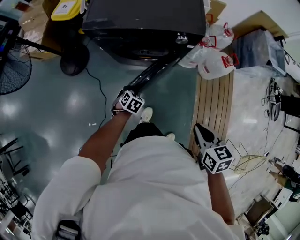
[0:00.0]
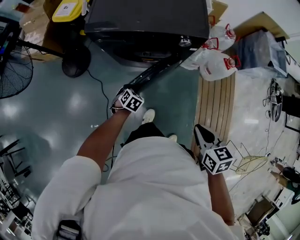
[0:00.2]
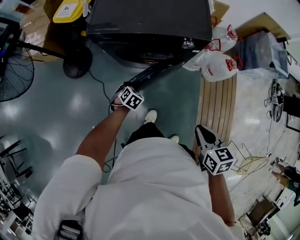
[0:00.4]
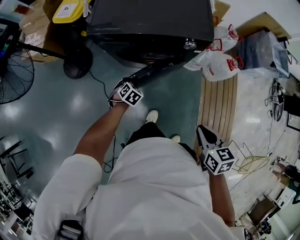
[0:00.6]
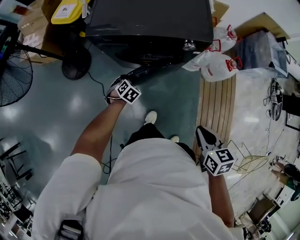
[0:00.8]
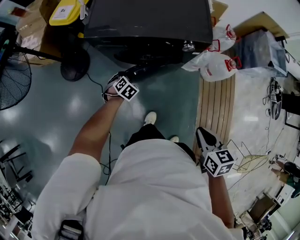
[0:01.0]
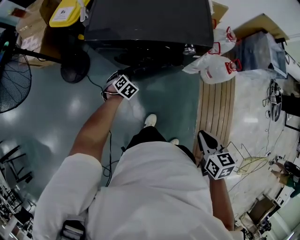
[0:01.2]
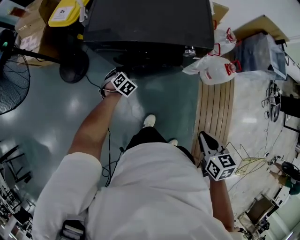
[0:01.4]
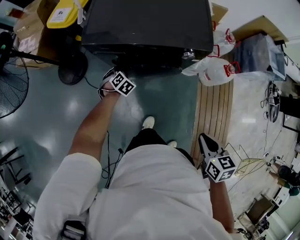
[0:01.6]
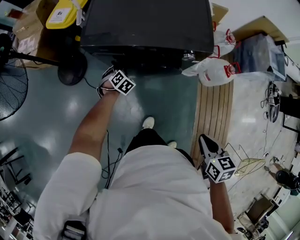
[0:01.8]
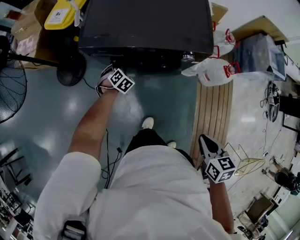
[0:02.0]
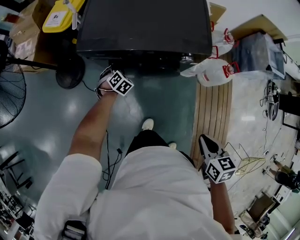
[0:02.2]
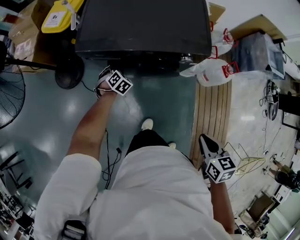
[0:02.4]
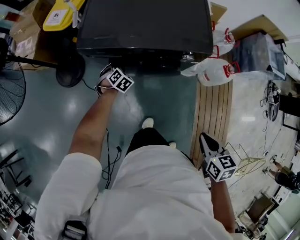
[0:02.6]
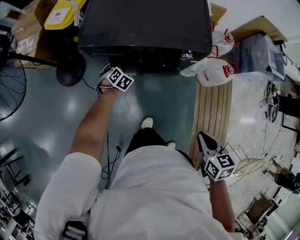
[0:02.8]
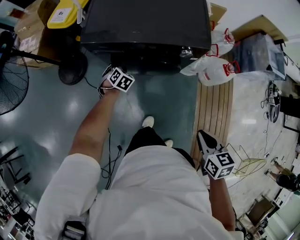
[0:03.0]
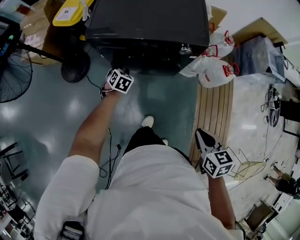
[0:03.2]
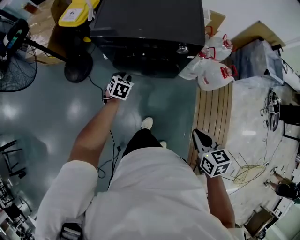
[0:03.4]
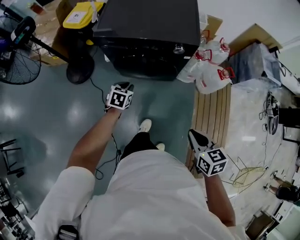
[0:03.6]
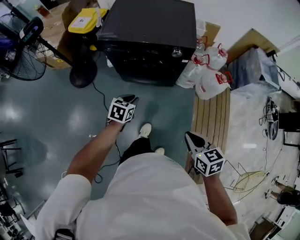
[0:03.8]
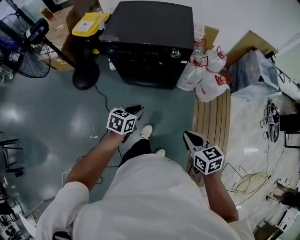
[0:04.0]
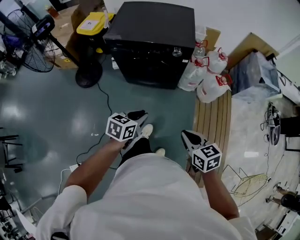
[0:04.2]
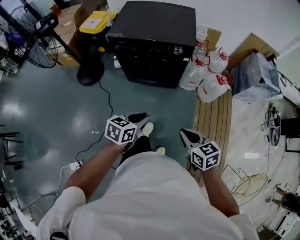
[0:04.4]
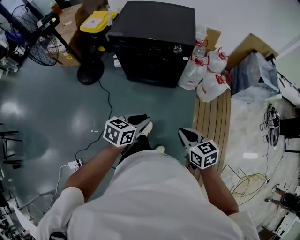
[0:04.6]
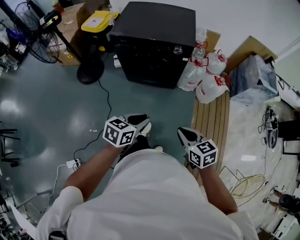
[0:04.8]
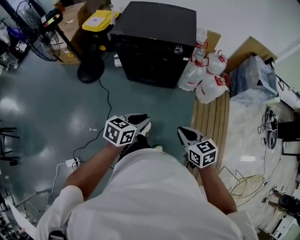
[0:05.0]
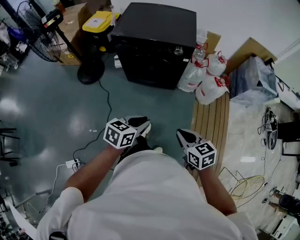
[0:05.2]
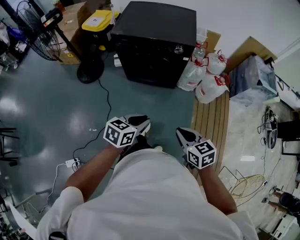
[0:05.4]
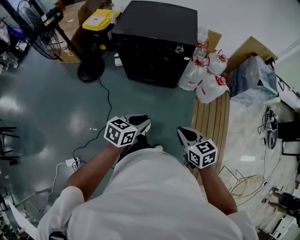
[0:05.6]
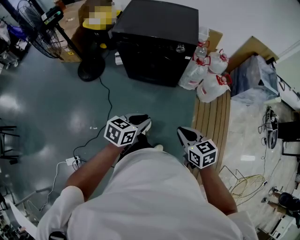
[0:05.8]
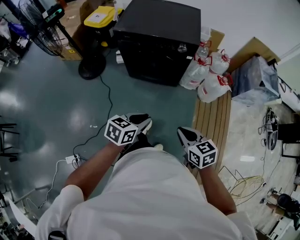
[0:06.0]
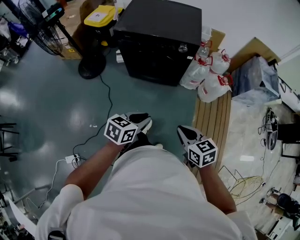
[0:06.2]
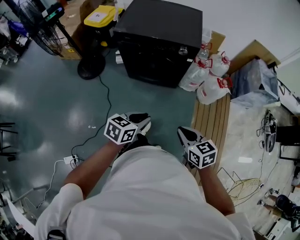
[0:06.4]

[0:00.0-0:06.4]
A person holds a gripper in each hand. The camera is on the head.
0:00.0 to 0:01.6: The left gripper heads forward, covering some 20 cm.
0:01.6 to 0:03.2: The left gripper changes place by some 5 cm.
0:03.2 to 0:04.8: The left gripper shifts about 50 cm backward and upward, and rotates roughly 40 degrees. Meanwhile the right gripper shifts approximately 15 cm backward.
0:04.8 to 0:06.4: The grippers make only small movements.

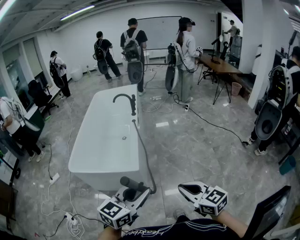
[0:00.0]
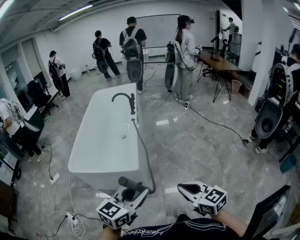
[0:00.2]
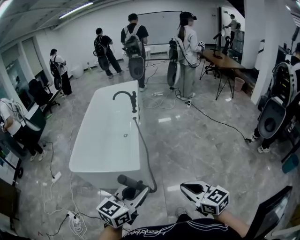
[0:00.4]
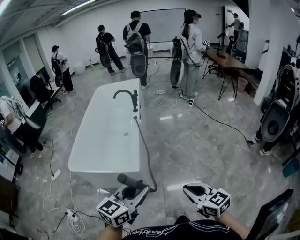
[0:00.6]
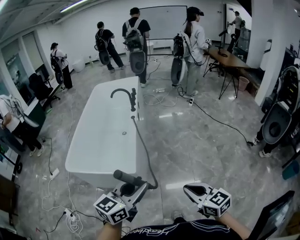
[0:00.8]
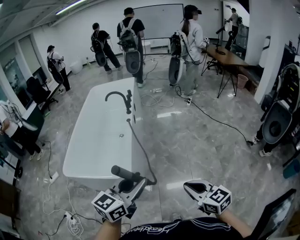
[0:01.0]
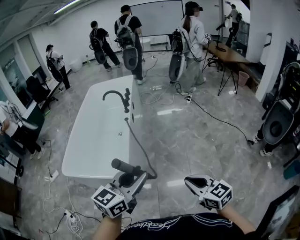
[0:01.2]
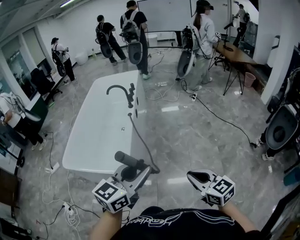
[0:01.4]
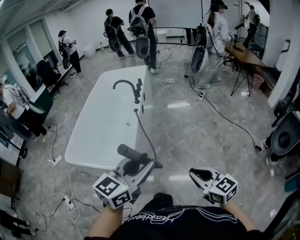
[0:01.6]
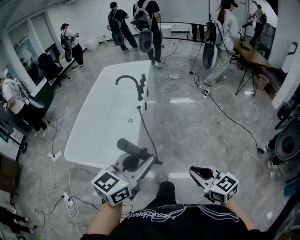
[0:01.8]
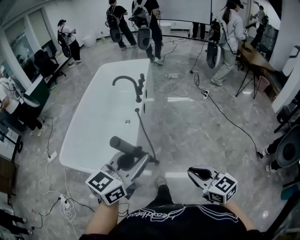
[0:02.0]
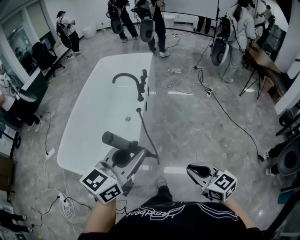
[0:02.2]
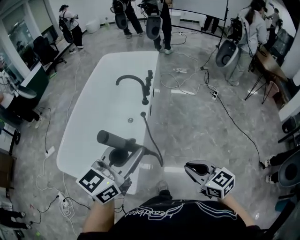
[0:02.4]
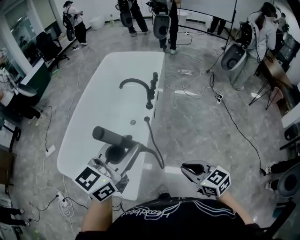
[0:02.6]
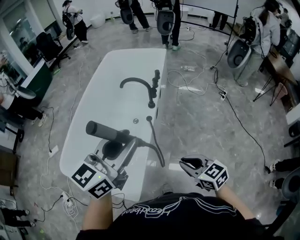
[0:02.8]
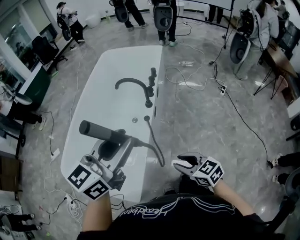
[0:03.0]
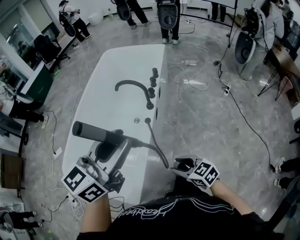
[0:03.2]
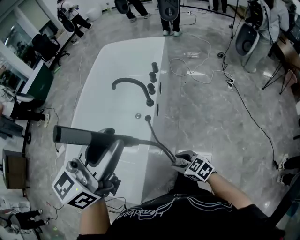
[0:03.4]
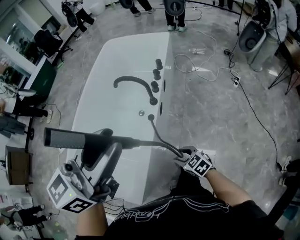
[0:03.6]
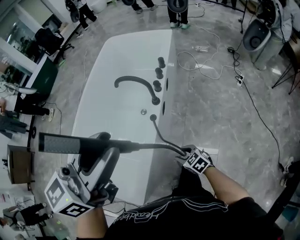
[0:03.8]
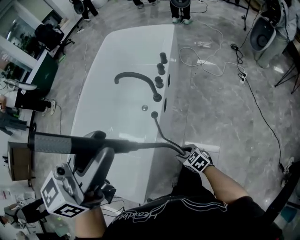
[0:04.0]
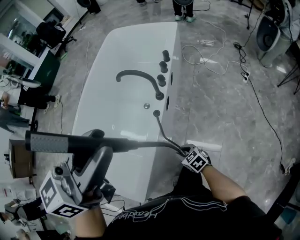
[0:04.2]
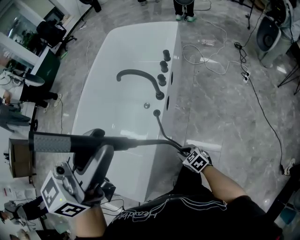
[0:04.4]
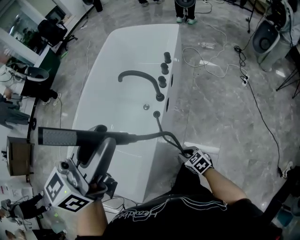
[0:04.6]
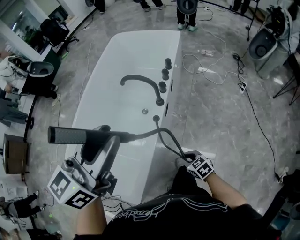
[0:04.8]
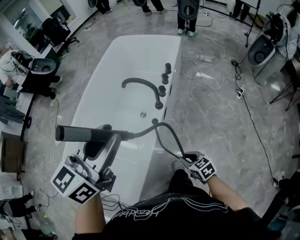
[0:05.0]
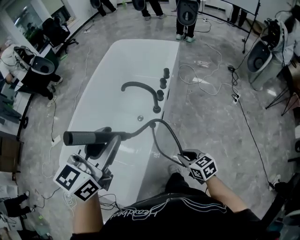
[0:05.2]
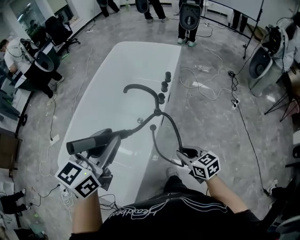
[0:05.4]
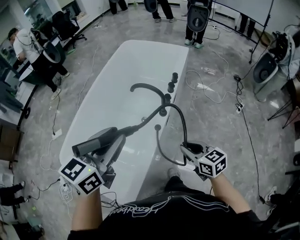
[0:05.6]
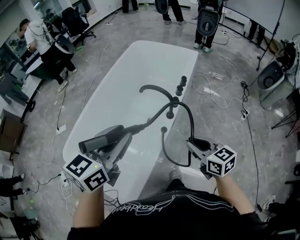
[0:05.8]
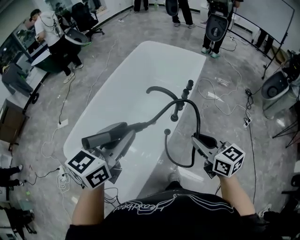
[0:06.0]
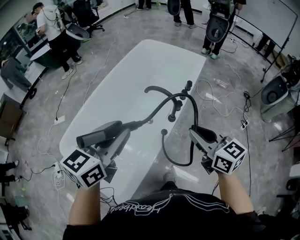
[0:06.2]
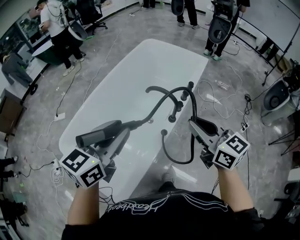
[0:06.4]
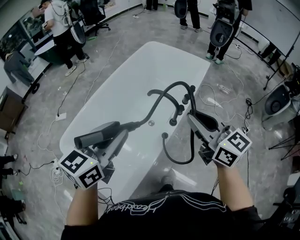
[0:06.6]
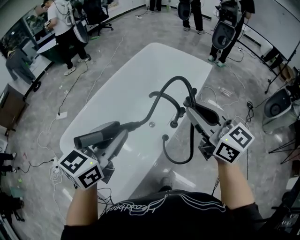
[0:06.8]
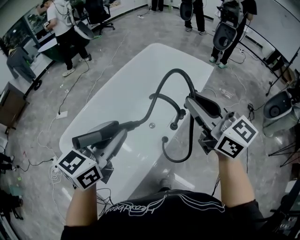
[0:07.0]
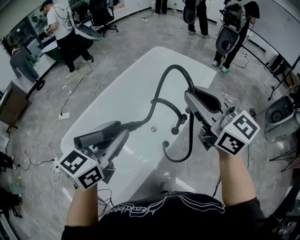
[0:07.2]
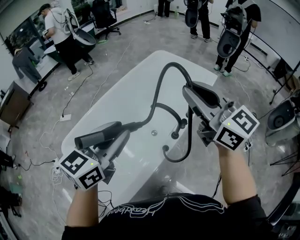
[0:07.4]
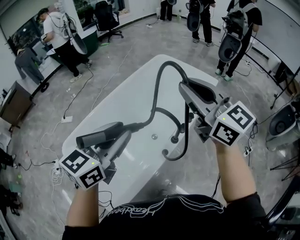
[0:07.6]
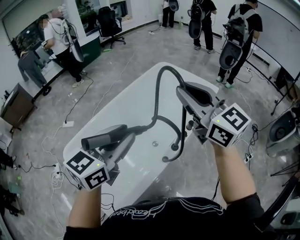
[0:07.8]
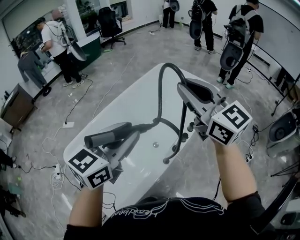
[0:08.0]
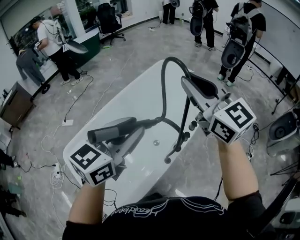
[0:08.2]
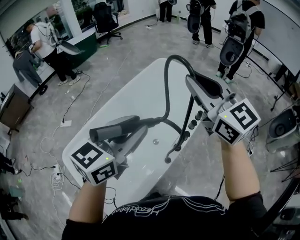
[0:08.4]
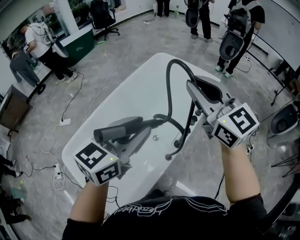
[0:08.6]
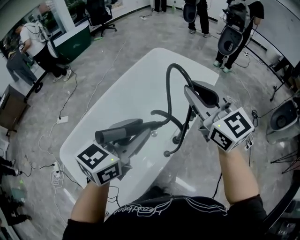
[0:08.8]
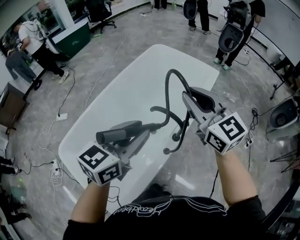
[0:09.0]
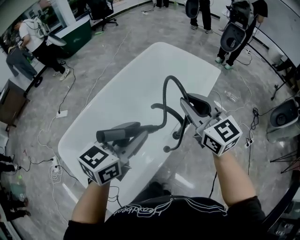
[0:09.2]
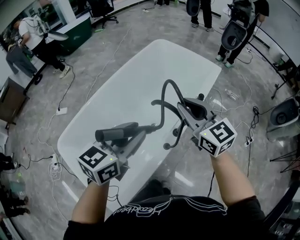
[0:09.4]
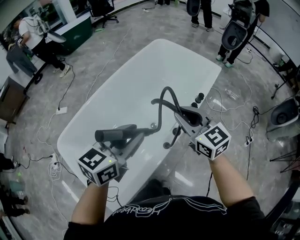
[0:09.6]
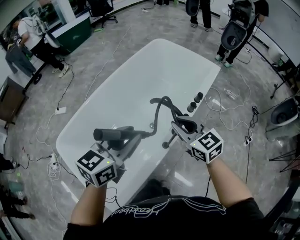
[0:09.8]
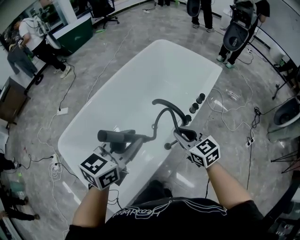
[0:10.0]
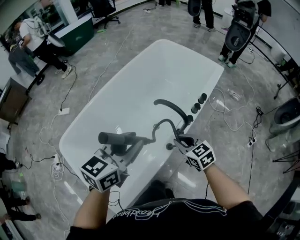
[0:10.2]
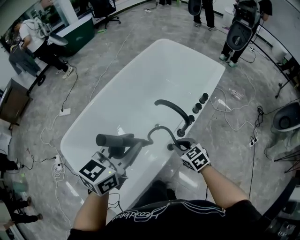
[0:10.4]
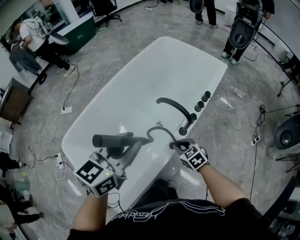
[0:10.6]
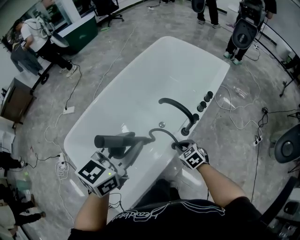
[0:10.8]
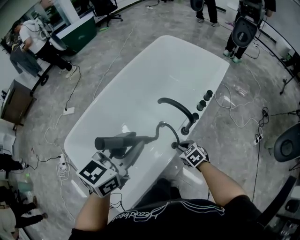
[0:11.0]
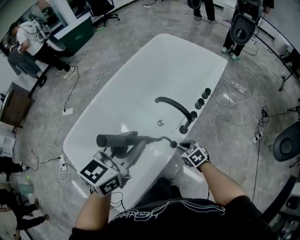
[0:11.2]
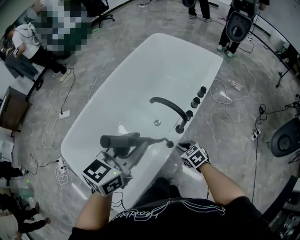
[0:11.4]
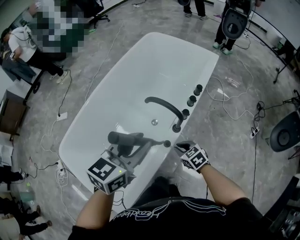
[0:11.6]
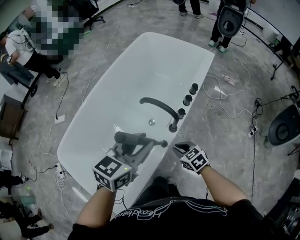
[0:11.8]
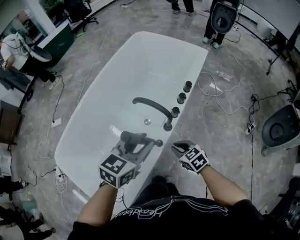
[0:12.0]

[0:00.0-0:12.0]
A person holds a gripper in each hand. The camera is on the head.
0:00.0 to 0:01.6: Both grippers travel together forward and to the right, roughly 25 cm.
0:01.6 to 0:03.0: The two grippers go roughly 40 cm forward. The right gripper rotates about 20 degrees, and opens.
0:03.0 to 0:04.4: The right gripper shifts some 25 cm downward and forward, and changes its angle by about 20 degrees. The left gripper moves forward, some 10 cm.
0:04.4 to 0:06.0: The left gripper travels to the left, downward and forward by about 10 cm, while the right gripper travels upward by roughly 35 cm, and angles its fingers upward, by roughly 30 degrees.
0:06.0 to 0:07.6: The left gripper heads forward, covering approximately 5 cm; the right gripper travels upward and forward by roughly 30 cm, and swivels roughly 30 degrees.
0:07.6 to 0:09.0: The left gripper goes some 10 cm forward and downward, while the right gripper heads downward and forward, covering roughly 10 cm.
0:09.0 to 0:10.4: The right gripper moves downward, about 35 cm, and tilts its fingers roughly 40 degrees downward. The left gripper travels downward and to the left by about 10 cm.
0:10.4 to 0:12.0: The left gripper heads to the right and downward, covering about 15 cm. Meanwhile the right gripper shifts approximately 5 cm to the right.

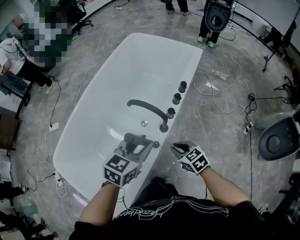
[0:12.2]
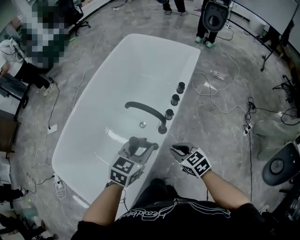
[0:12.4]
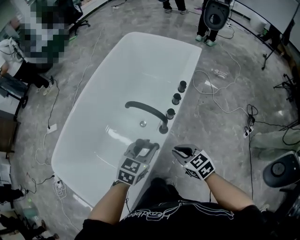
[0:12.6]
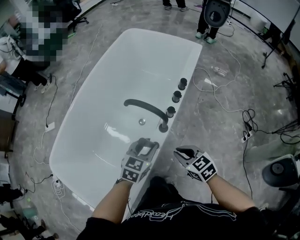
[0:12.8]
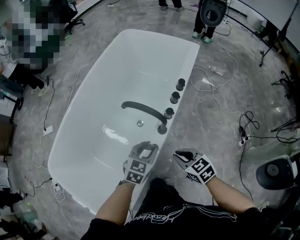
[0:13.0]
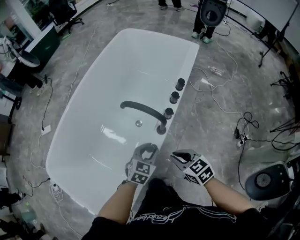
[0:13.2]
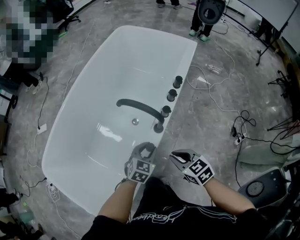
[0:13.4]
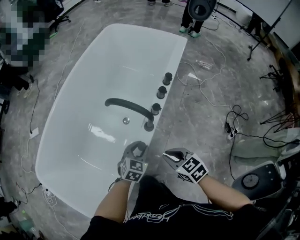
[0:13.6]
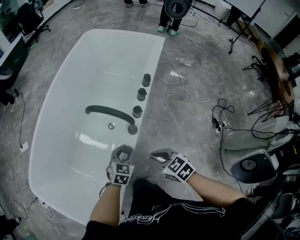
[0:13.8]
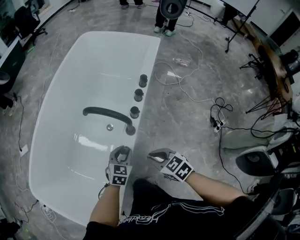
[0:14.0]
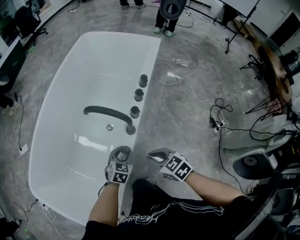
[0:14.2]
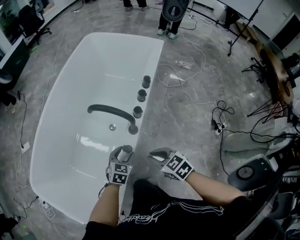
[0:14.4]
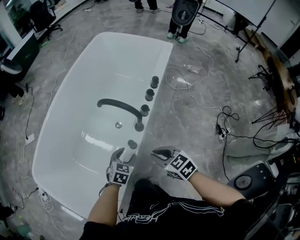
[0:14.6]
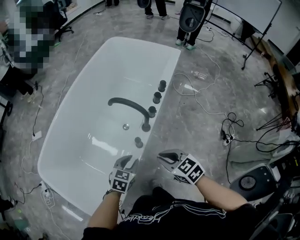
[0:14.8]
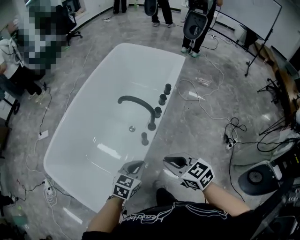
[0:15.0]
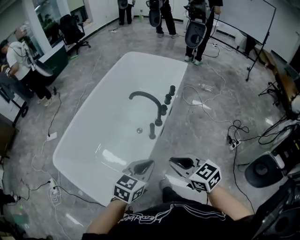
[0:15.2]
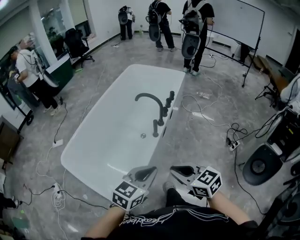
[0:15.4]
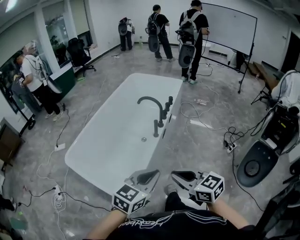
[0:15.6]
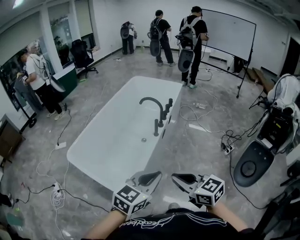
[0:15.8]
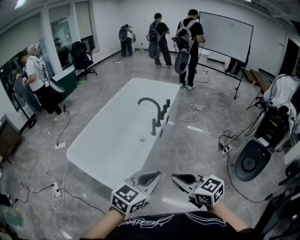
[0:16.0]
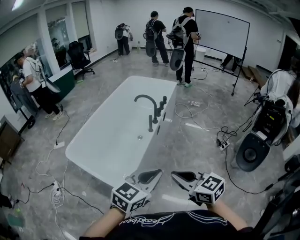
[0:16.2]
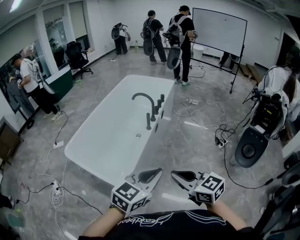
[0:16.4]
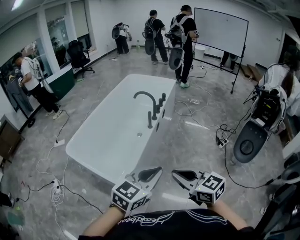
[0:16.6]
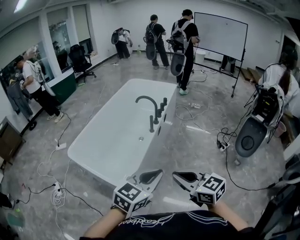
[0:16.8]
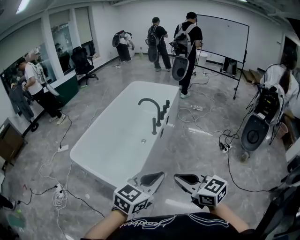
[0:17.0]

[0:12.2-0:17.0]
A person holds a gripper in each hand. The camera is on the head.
0:12.2 to 0:13.8: The left gripper travels downward by approximately 25 cm.
0:13.8 to 0:15.4: The left gripper travels upward and backward by approximately 50 cm, changes its angle by approximately 20 degrees, and closes its fingers. Meanwhile the right gripper is displaced backward and upward by about 35 cm, and rotates about 20 degrees.
0:15.4 to 0:17.0: Both grippers travel together backward and upward, some 25 cm.
